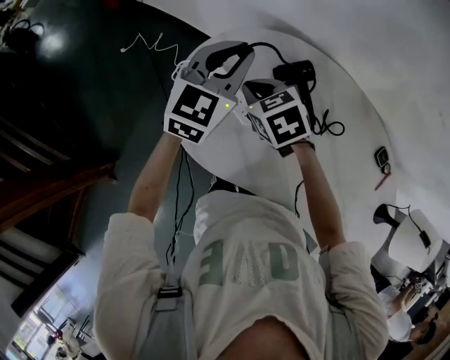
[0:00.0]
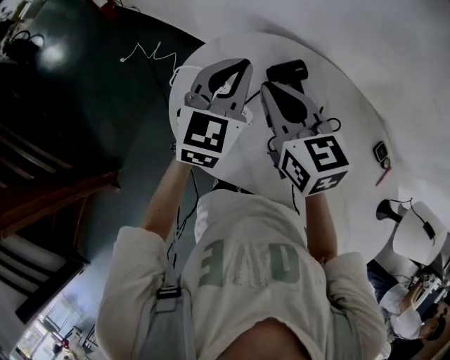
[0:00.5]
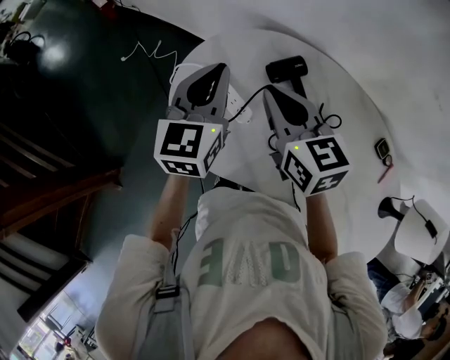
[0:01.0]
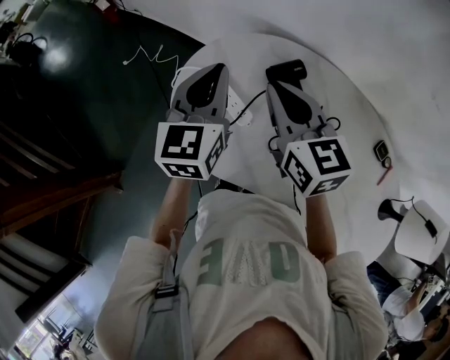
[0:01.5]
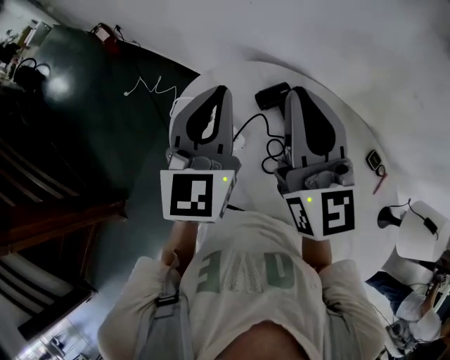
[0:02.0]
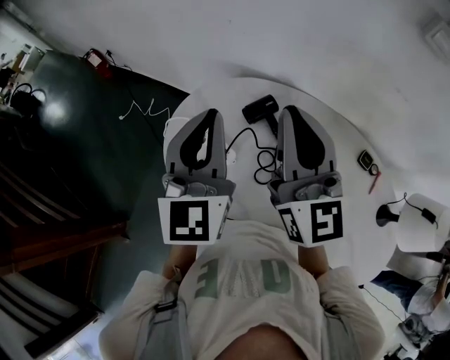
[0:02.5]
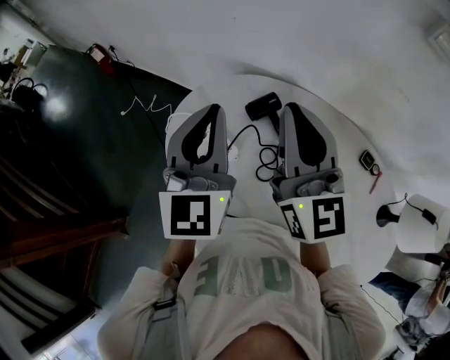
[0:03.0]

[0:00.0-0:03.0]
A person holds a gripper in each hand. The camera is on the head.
0:00.0 to 0:01.5: The right gripper shifts approximately 15 cm upward and to the right, and points its fingers about 30 degrees further upward; the left gripper travels backward by about 5 cm, and changes its angle by approximately 20 degrees.
0:01.5 to 0:03.0: The right gripper shifts about 15 cm upward and to the right, and turns by roughly 30 degrees. Meanwhile the left gripper shifts some 15 cm upward and backward.

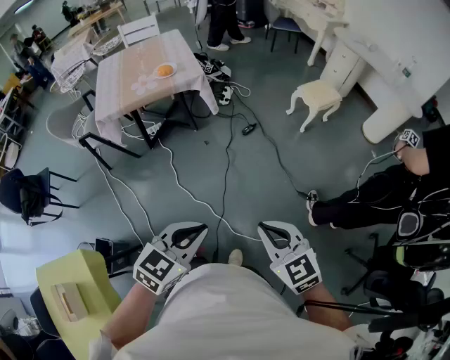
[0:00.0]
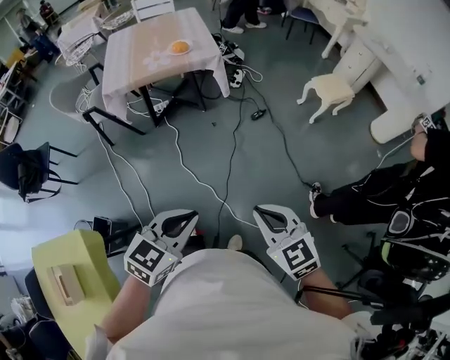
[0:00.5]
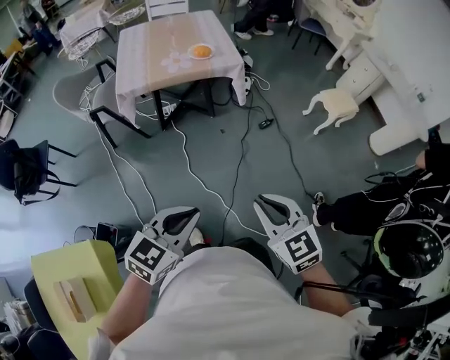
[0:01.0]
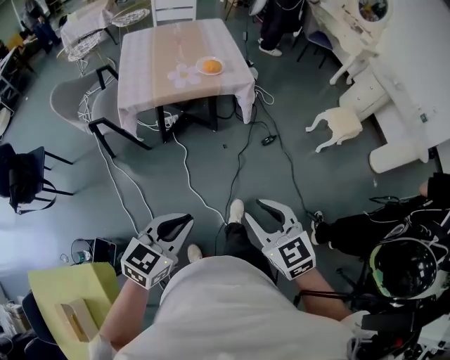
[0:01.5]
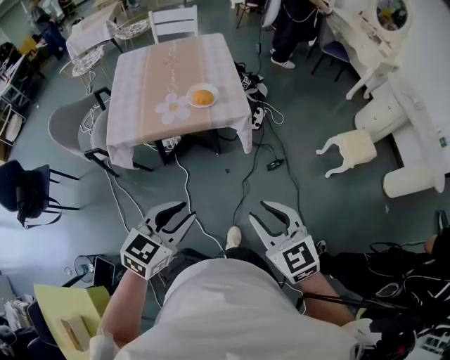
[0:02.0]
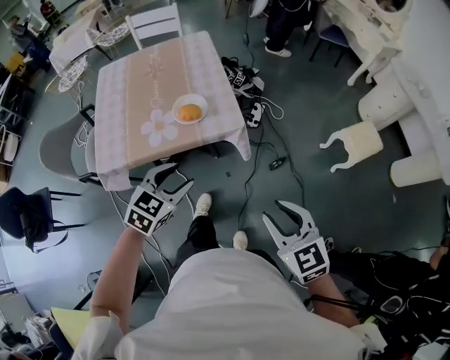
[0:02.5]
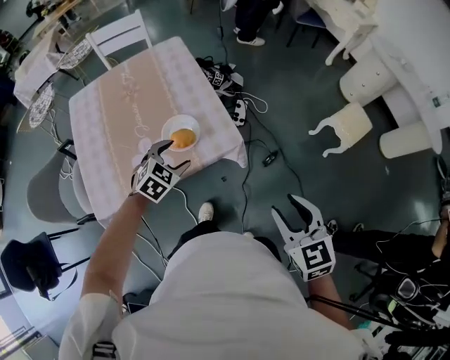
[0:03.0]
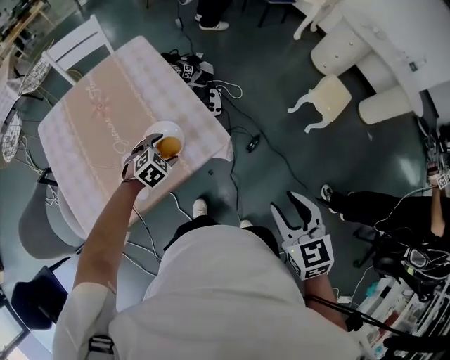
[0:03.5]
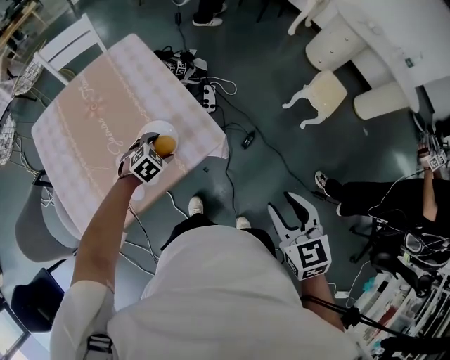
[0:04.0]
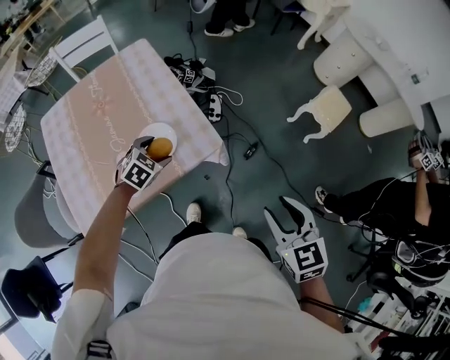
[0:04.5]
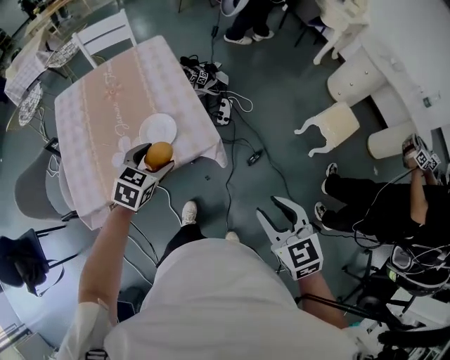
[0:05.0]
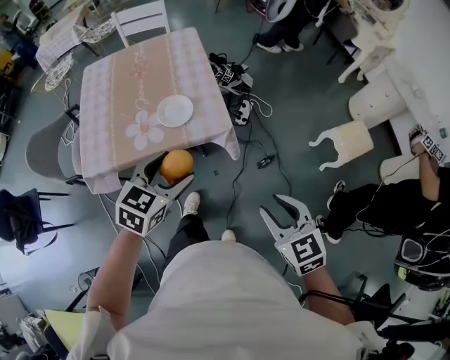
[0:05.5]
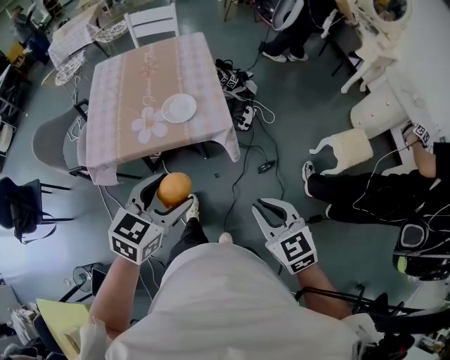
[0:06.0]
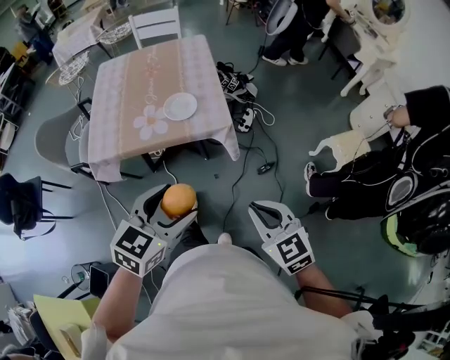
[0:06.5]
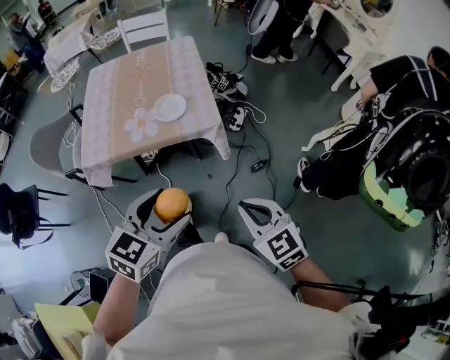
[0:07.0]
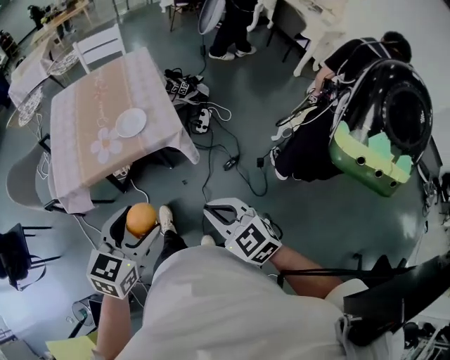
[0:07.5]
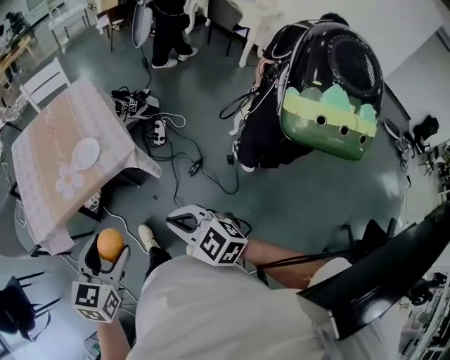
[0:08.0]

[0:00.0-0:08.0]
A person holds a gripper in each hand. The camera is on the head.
0:00.0 to 0:02.0: Both grippers are carried forward and to the left, roughly 40 cm. The right gripper opens its fingers.
0:02.0 to 0:04.0: The left gripper ends up about 60 cm from where it was, points its fingers some 40 degrees further downward, and opens up. Meanwhile the right gripper ends up approximately 25 cm from where it was, and turns by about 40 degrees.
0:04.0 to 0:06.0: The left gripper moves about 40 cm, and angles its fingers upward, by approximately 30 degrees, while the right gripper shifts by approximately 10 cm, swivels about 40 degrees, and closes up.
0:06.0 to 0:08.0: The left gripper shifts roughly 5 cm backward.

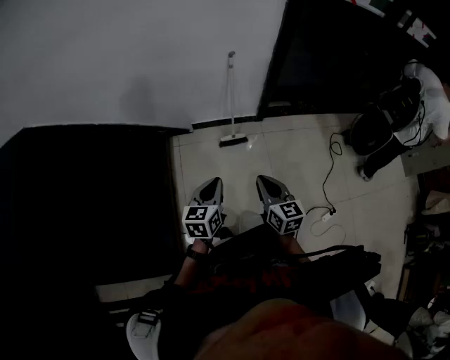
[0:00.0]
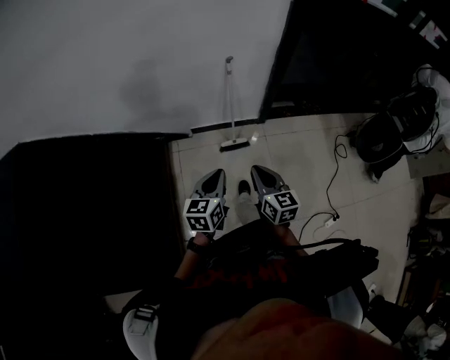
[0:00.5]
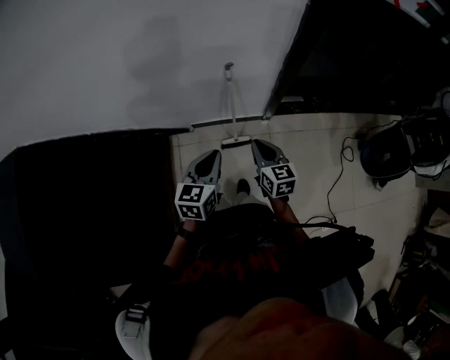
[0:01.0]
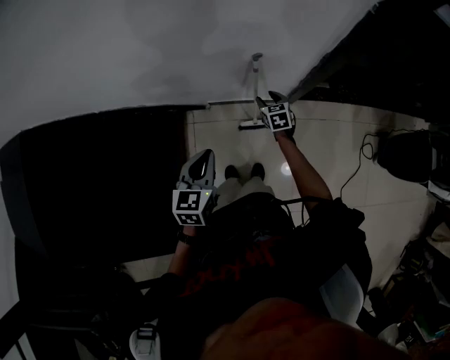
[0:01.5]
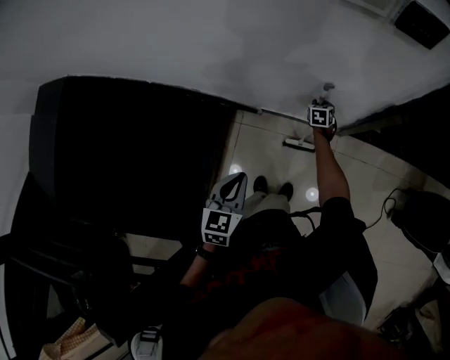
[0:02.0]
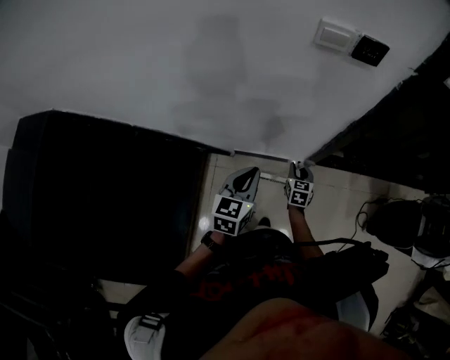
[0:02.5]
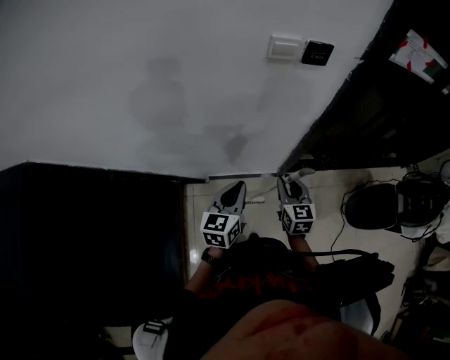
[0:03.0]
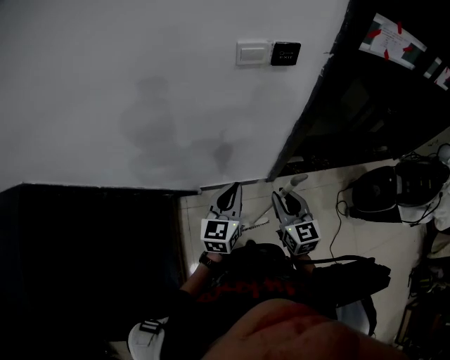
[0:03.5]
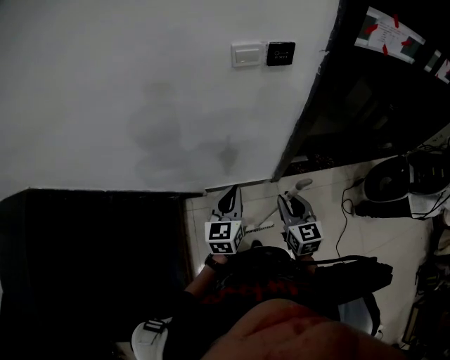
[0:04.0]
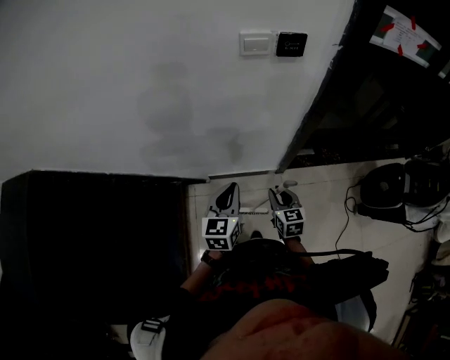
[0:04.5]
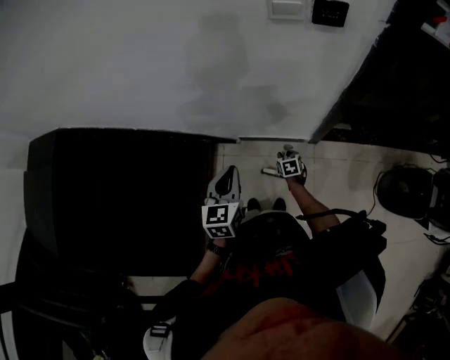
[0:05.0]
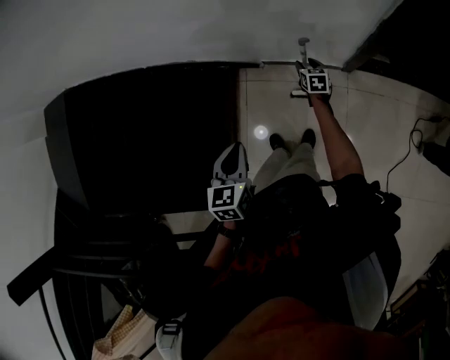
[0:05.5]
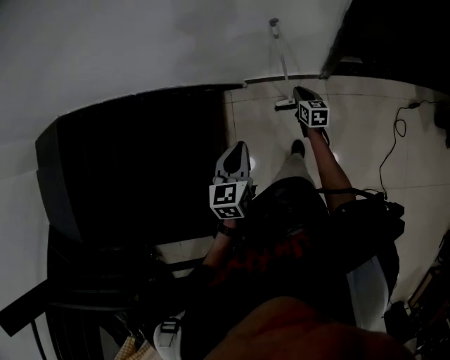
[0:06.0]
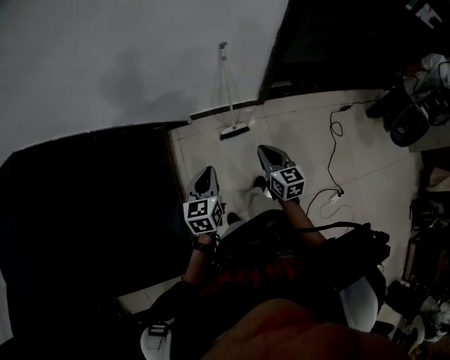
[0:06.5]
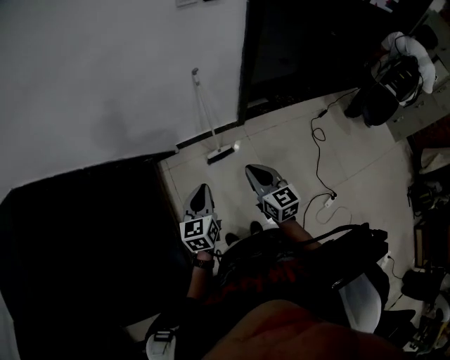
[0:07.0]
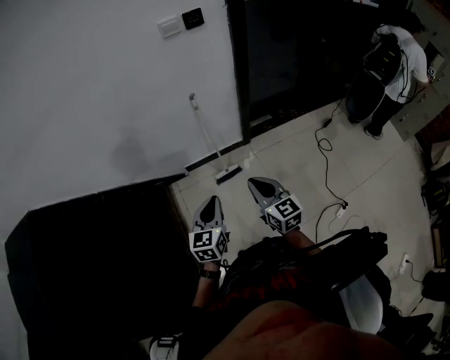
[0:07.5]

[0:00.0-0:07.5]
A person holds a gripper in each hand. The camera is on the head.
0:00.0 to 0:02.0: The right gripper travels forward and downward by approximately 80 cm, points its fingers roughly 30 degrees further downward, and opens up. The left gripper travels forward by approximately 35 cm, and changes its angle by roughly 30 degrees.
0:02.0 to 0:04.0: The left gripper travels upward, to the right and forward by approximately 15 cm, and swivels about 30 degrees, while the right gripper travels upward and backward by approximately 50 cm, and points its fingers about 30 degrees further upward.
0:04.0 to 0:05.5: The left gripper goes roughly 15 cm backward, downward and to the left, and changes its angle by some 40 degrees, while the right gripper shifts roughly 40 cm downward and forward, rotates approximately 30 degrees, and opens.
0:05.5 to 0:07.5: The right gripper travels backward and upward by about 60 cm, changes its angle by approximately 30 degrees, and closes. The left gripper shifts approximately 25 cm backward, and turns by roughly 40 degrees.

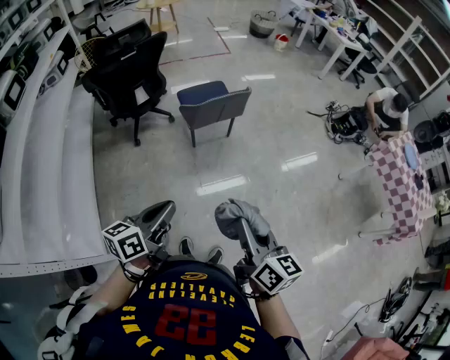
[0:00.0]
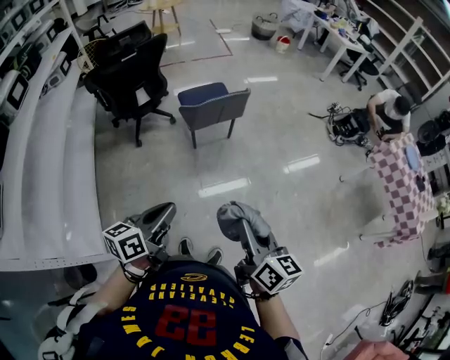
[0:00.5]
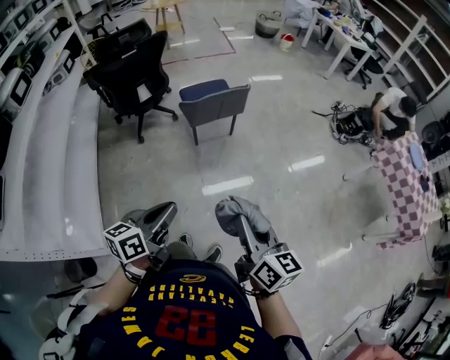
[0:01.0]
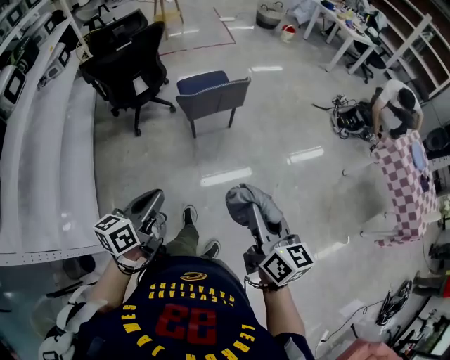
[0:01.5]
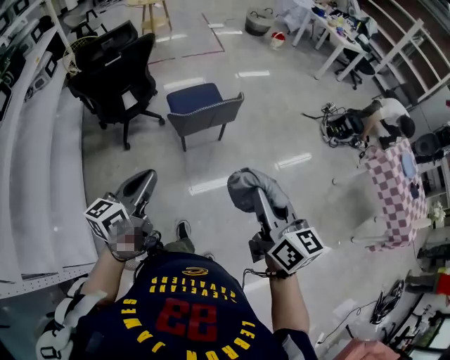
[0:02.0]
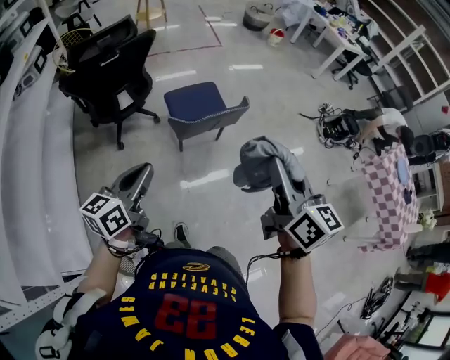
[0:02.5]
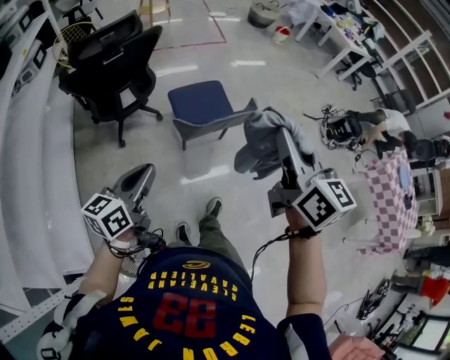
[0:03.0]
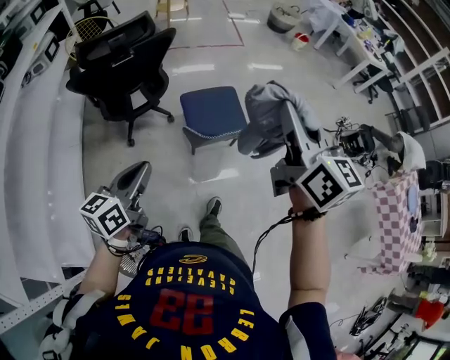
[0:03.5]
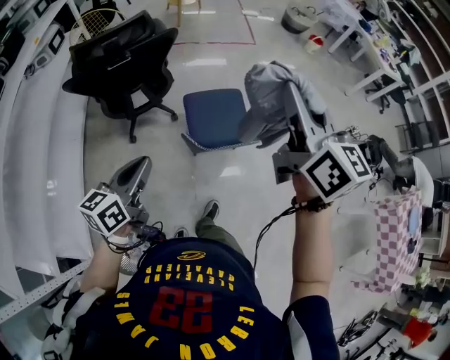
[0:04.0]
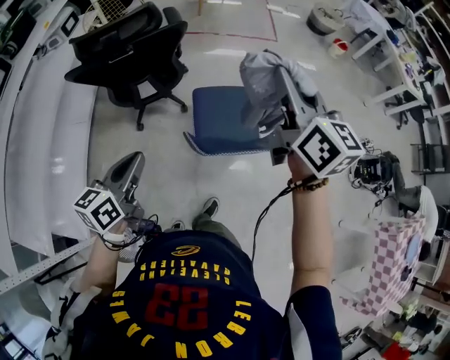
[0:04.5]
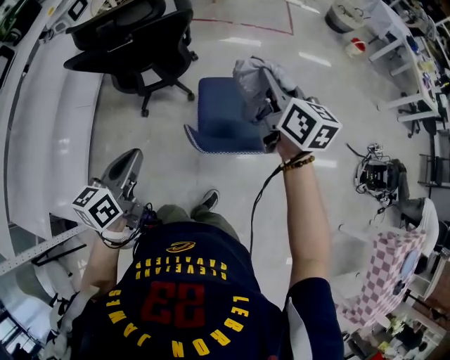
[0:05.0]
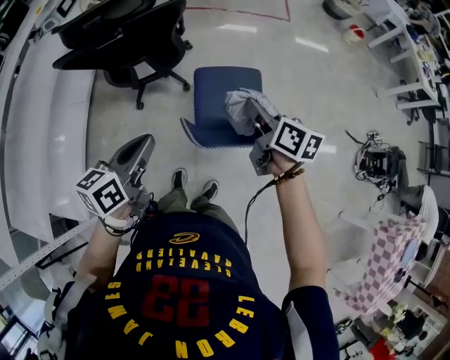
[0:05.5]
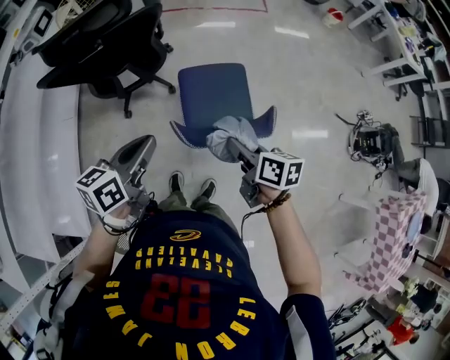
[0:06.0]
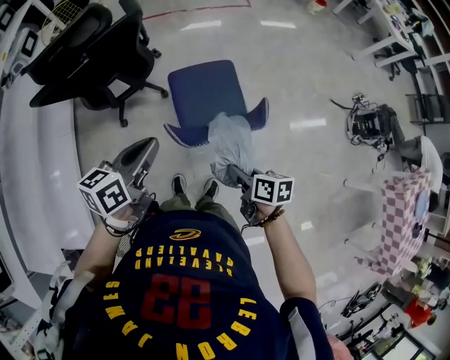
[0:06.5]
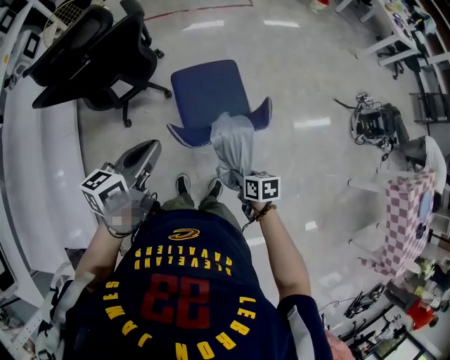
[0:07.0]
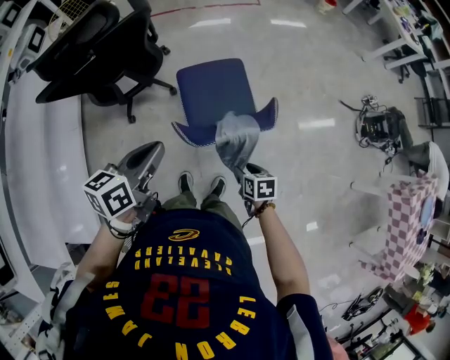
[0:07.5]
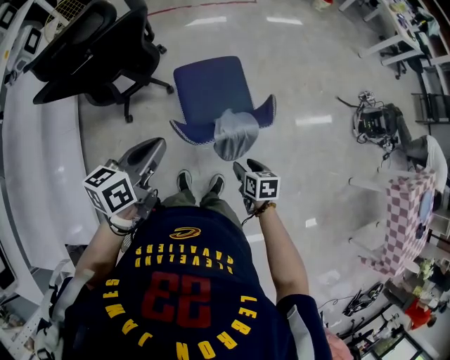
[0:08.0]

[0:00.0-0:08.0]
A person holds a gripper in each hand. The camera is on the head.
0:00.0 to 0:02.0: Both grippers move forward, roughly 15 cm.
0:02.0 to 0:04.0: The right gripper goes approximately 40 cm forward; the left gripper shifts roughly 25 cm forward.
0:04.0 to 0:06.0: The left gripper is displaced forward, to the right and downward by roughly 15 cm. Meanwhile the right gripper travels downward by roughly 35 cm, and tips its fingers downward by approximately 30 degrees.
0:06.0 to 0:08.0: The right gripper moves downward and backward, approximately 20 cm, swivels roughly 30 degrees, and opens up.
